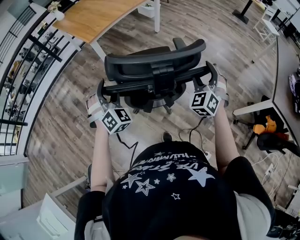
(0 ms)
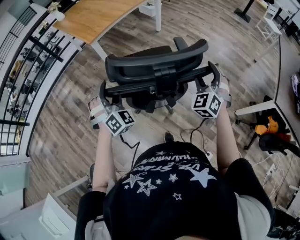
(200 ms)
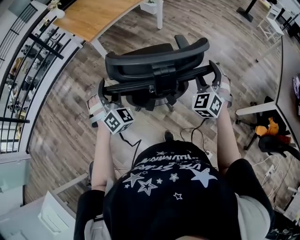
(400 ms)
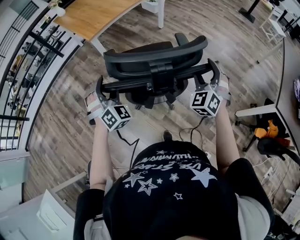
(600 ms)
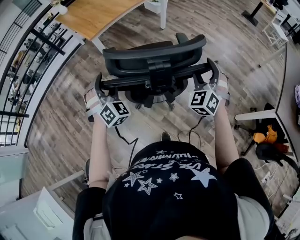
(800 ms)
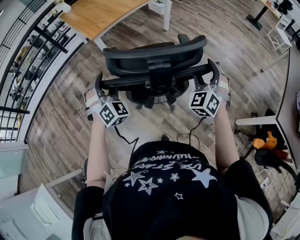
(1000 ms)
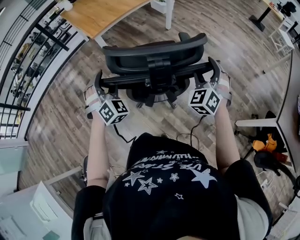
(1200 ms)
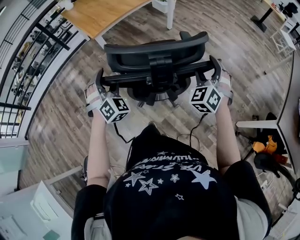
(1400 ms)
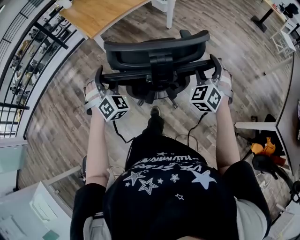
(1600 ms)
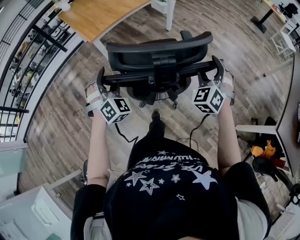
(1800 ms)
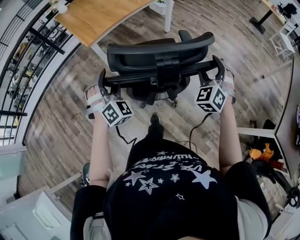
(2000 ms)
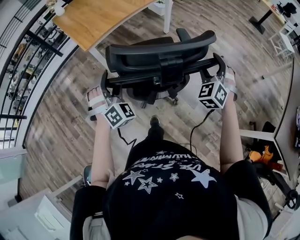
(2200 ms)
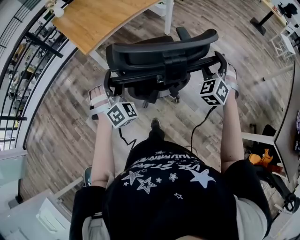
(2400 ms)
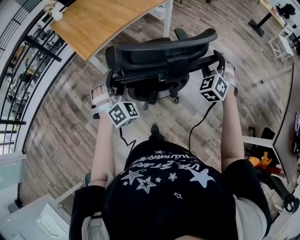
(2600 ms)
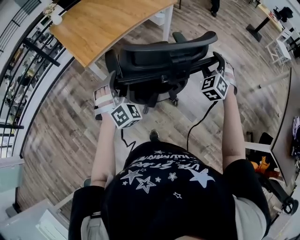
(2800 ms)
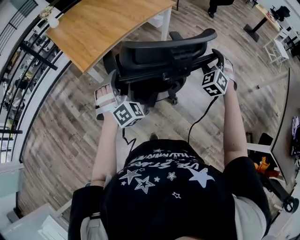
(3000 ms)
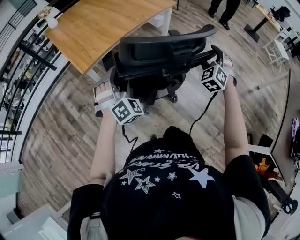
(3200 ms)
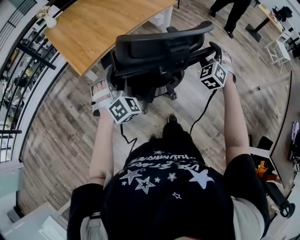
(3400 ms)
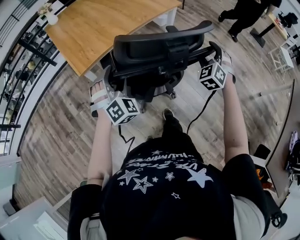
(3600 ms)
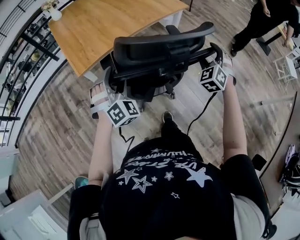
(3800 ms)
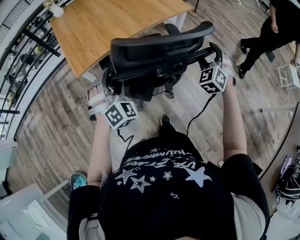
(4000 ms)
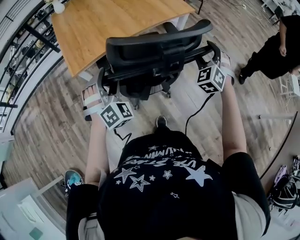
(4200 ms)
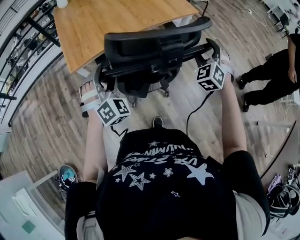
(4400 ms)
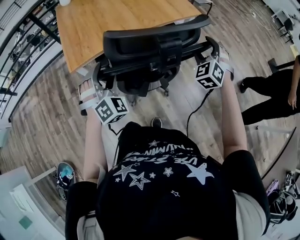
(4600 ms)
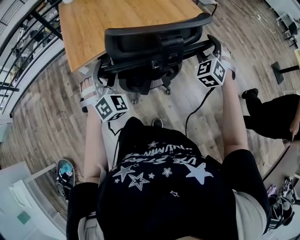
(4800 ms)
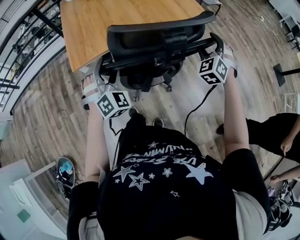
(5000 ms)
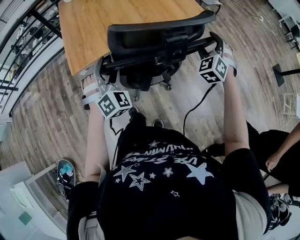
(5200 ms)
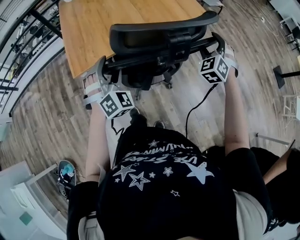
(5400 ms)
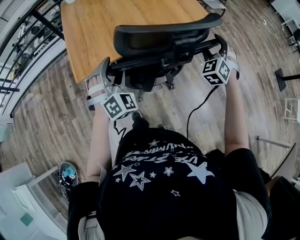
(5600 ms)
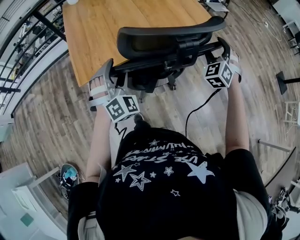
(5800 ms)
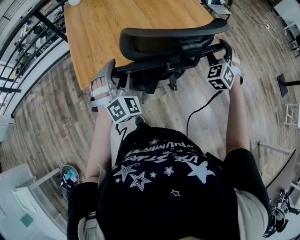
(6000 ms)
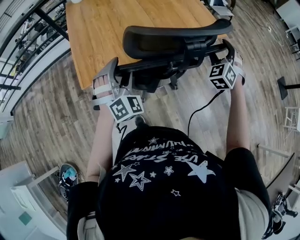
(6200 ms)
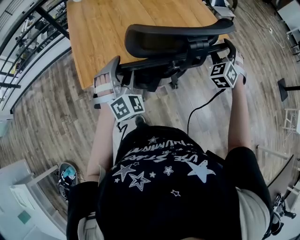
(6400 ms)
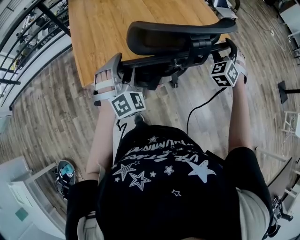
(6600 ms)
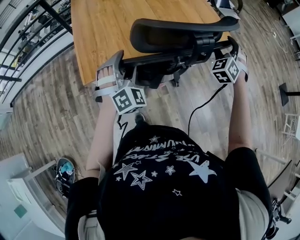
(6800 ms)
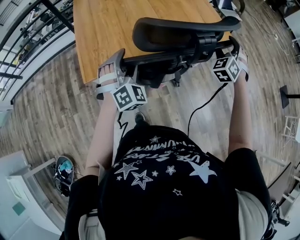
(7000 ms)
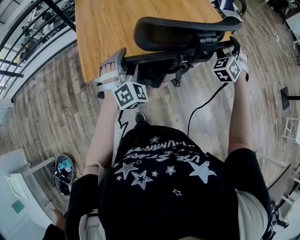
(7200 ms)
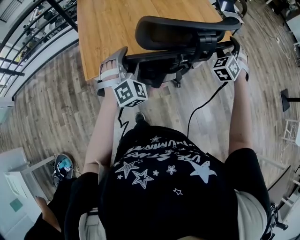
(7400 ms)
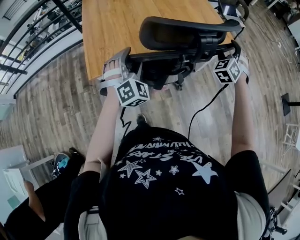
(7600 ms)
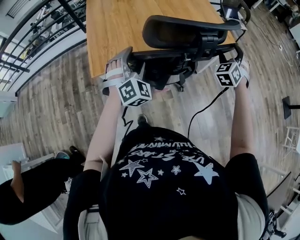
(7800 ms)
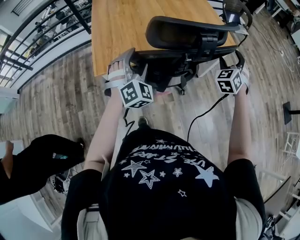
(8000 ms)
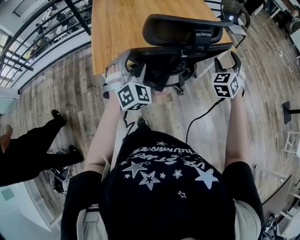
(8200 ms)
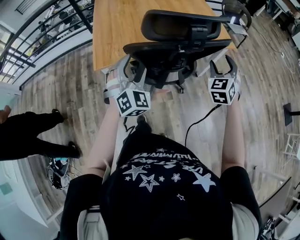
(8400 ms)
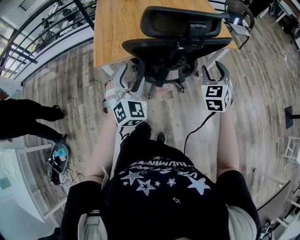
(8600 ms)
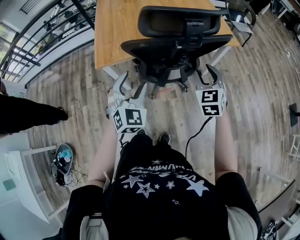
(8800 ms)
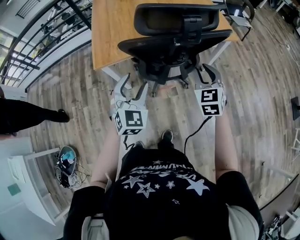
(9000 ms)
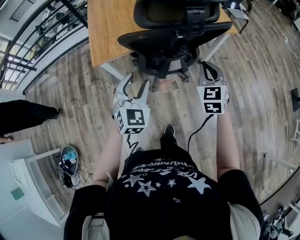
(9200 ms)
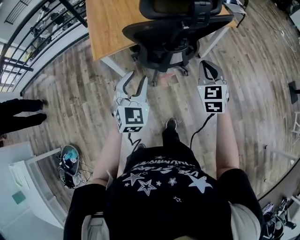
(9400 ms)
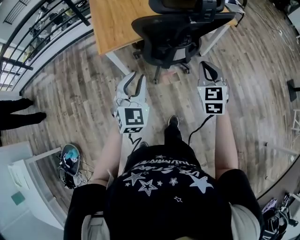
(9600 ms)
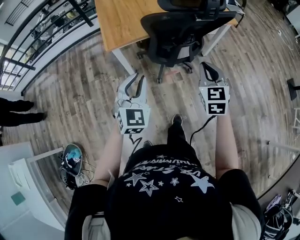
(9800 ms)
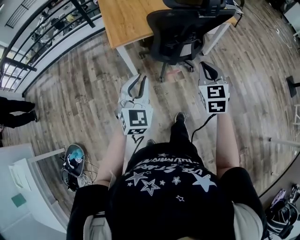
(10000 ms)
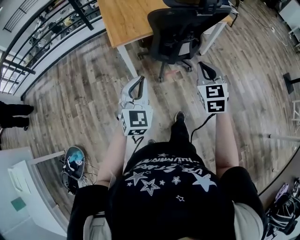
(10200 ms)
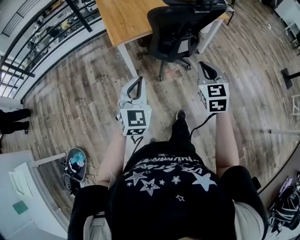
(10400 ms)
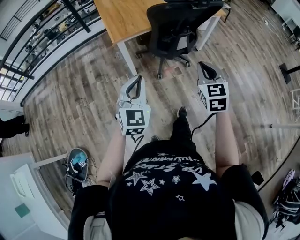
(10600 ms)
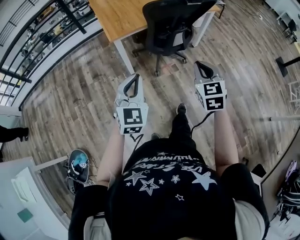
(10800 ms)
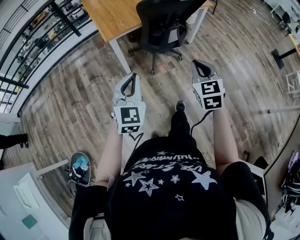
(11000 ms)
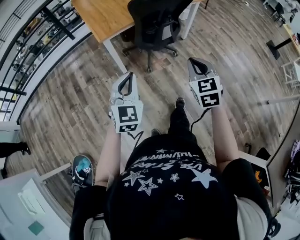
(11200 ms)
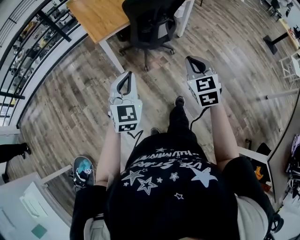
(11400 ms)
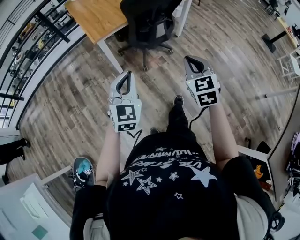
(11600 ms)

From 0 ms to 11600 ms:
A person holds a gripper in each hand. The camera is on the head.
From 0 ms to 1400 ms: Both grippers travel together forward, some 10 cm.
From 1400 ms to 2800 ms: Both grippers move forward, approximately 25 cm.
From 2800 ms to 4400 ms: The left gripper heads forward, covering approximately 20 cm; the right gripper heads forward, covering some 30 cm, and swivels roughly 20 degrees.
From 4400 ms to 5800 ms: The grippers both shift forward by approximately 20 cm.
From 5800 ms to 7200 ms: The right gripper changes place by some 5 cm.
From 7200 ms to 8800 ms: The right gripper travels backward and to the left by about 20 cm, and swivels roughly 40 degrees; the left gripper heads backward, covering roughly 15 cm, and changes its angle by approximately 30 degrees.
From 8800 ms to 10200 ms: The grippers both shift backward and to the left by approximately 25 cm. The left gripper closes its fingers. Meanwhile the right gripper closes.
From 10200 ms to 11600 ms: The right gripper is displaced backward by some 15 cm. The left gripper travels backward by some 10 cm.

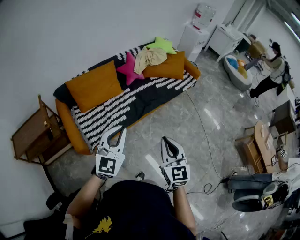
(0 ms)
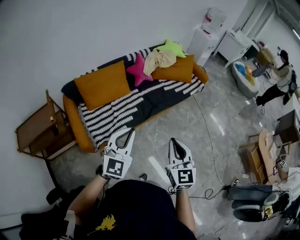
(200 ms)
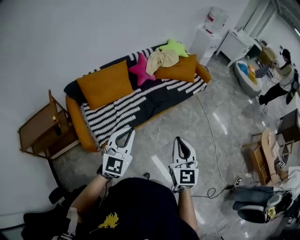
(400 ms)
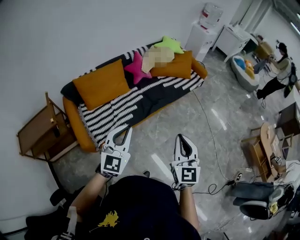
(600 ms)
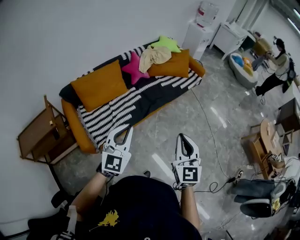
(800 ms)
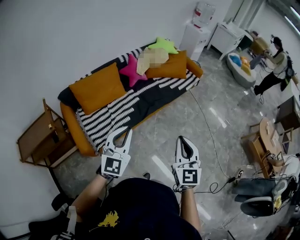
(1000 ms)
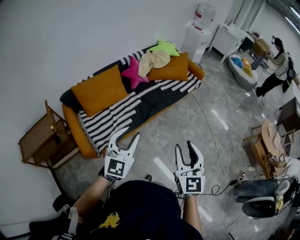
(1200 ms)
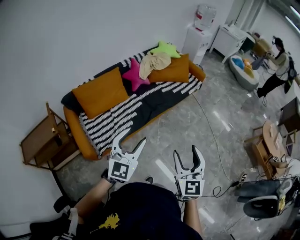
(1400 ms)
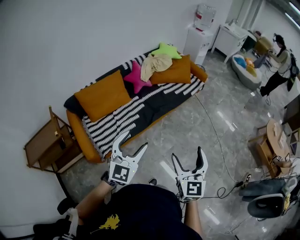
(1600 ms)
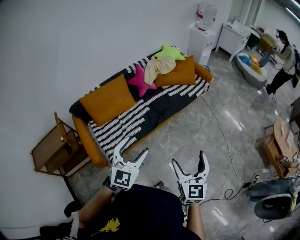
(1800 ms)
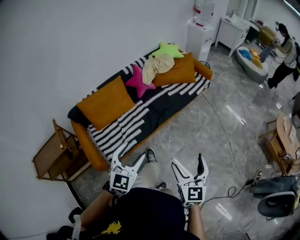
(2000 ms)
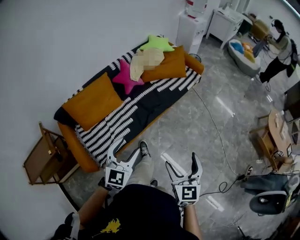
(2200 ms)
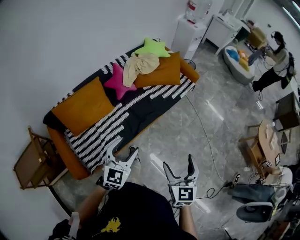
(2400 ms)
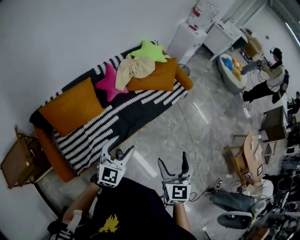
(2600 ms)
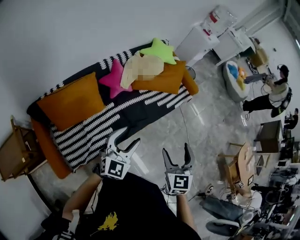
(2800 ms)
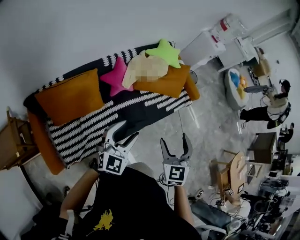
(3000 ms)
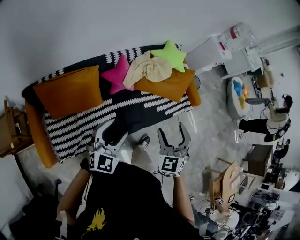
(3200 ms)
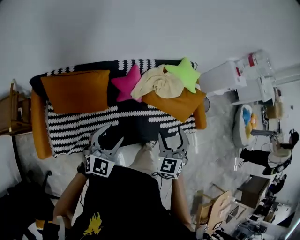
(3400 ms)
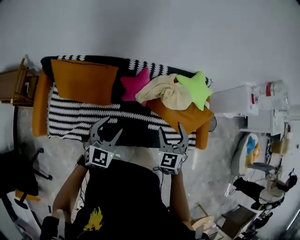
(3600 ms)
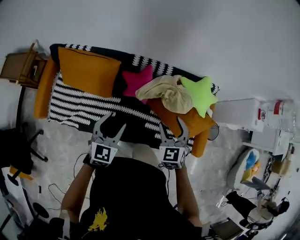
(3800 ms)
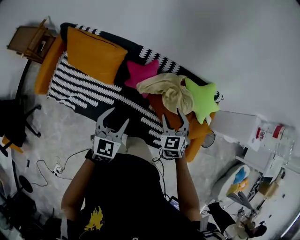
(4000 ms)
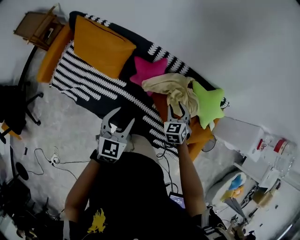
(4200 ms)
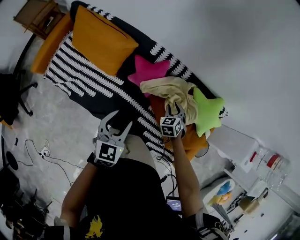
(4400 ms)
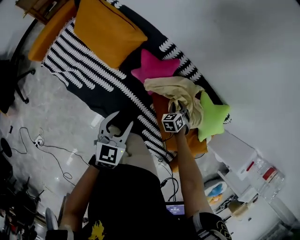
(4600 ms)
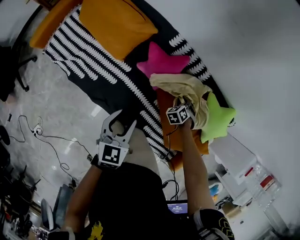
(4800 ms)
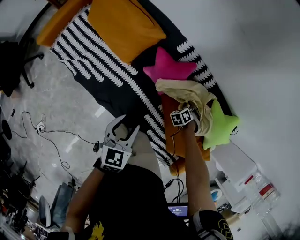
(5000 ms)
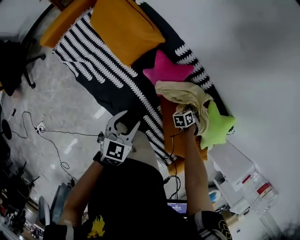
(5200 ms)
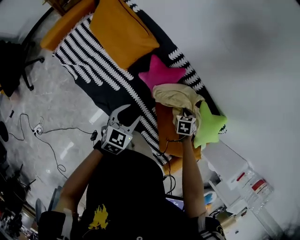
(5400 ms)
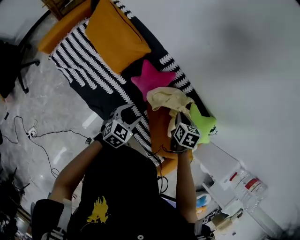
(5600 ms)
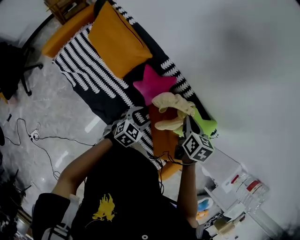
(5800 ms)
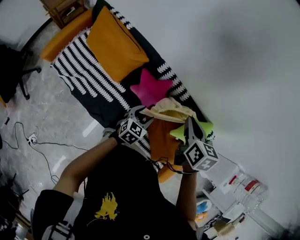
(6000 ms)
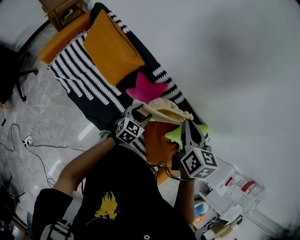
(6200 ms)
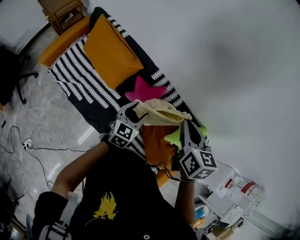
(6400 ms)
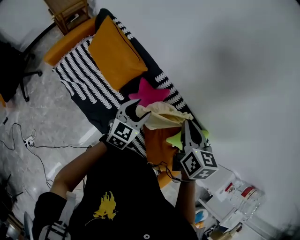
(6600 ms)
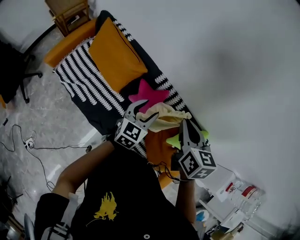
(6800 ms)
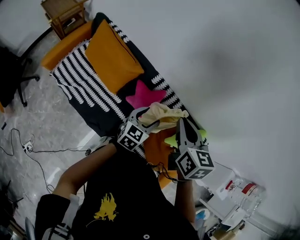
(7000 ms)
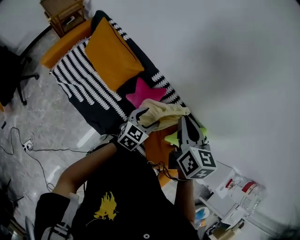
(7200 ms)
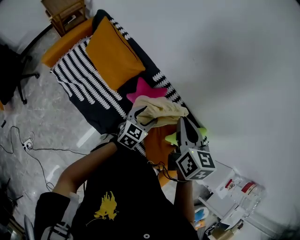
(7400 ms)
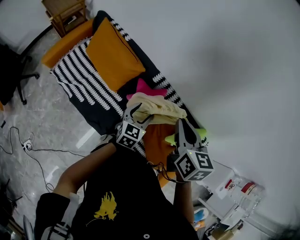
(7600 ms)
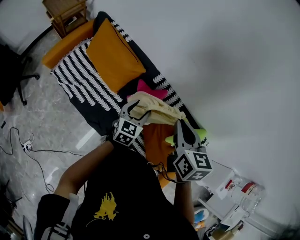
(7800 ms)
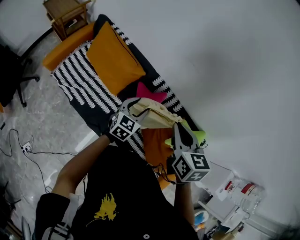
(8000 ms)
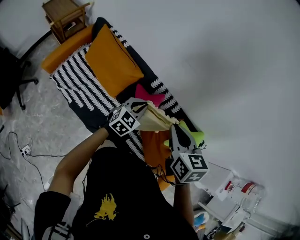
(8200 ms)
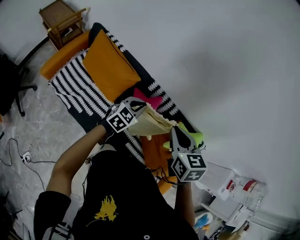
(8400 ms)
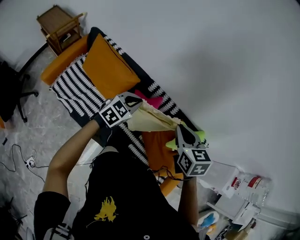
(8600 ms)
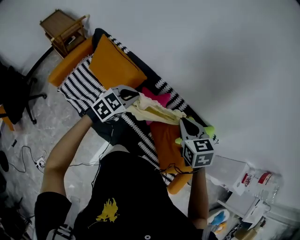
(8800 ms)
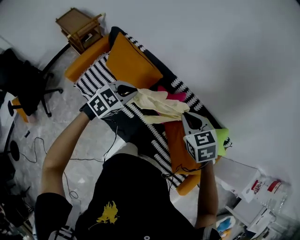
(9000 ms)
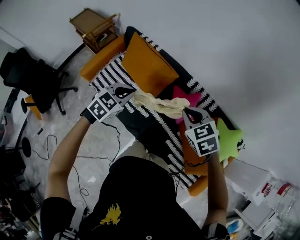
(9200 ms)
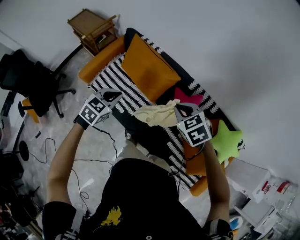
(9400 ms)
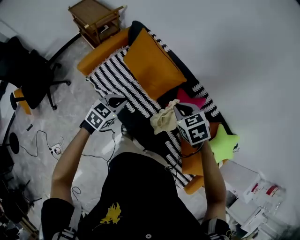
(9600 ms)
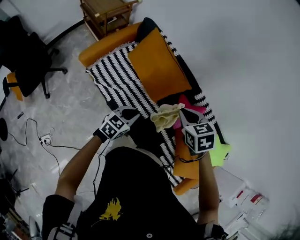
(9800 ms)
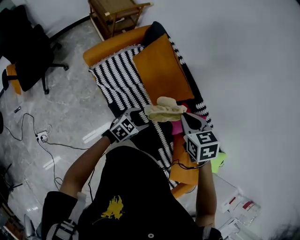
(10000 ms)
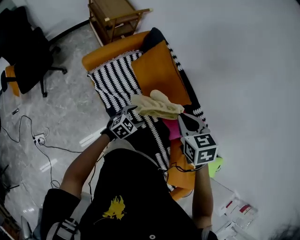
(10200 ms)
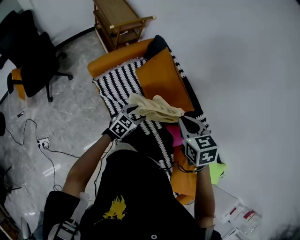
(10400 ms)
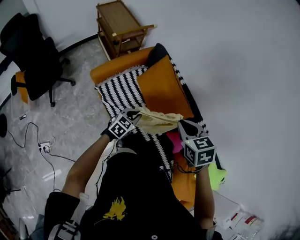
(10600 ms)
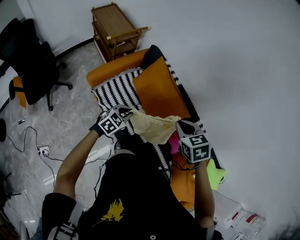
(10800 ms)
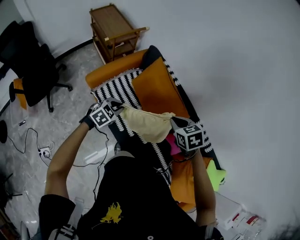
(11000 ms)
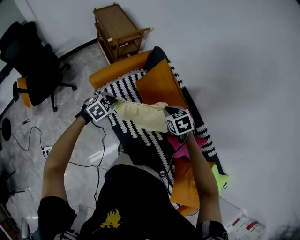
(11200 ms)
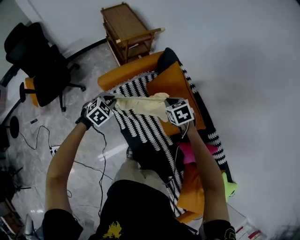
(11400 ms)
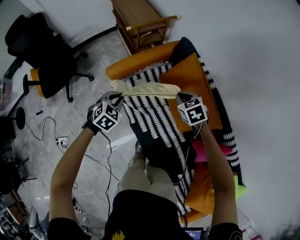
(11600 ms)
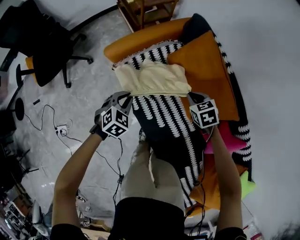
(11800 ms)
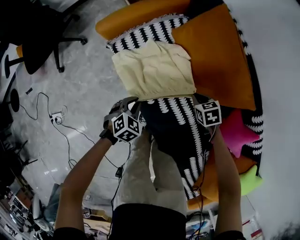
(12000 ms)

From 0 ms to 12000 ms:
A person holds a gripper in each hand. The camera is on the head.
From 0 ms to 1600 ms: The grippers both shift to the right by some 10 cm. The left gripper opens up. The right gripper opens up.
From 1600 ms to 3000 ms: The pair of grippers is taken forward, roughly 50 cm. The right gripper changes its angle by roughly 30 degrees.
From 3000 ms to 4400 ms: The right gripper moves about 70 cm, points its fingers some 30 degrees further downward, and closes up; the left gripper moves some 35 cm, and swivels about 70 degrees.
From 4400 ms to 6000 ms: The right gripper moves upward, approximately 30 cm, and rotates approximately 40 degrees; the left gripper travels forward, downward and to the right by roughly 15 cm.
From 6000 ms to 7600 ms: The left gripper shifts some 10 cm upward, while the right gripper goes approximately 10 cm upward and to the left.
From 7600 ms to 9000 ms: The right gripper shifts by some 5 cm, and swivels some 30 degrees; the left gripper moves to the left and upward, about 15 cm, rotates approximately 30 degrees, and closes its fingers.
From 9000 ms to 10400 ms: The left gripper is displaced to the left and downward by approximately 35 cm, rotates roughly 30 degrees, and opens up. The right gripper is displaced to the left by some 40 cm.
From 10400 ms to 12000 ms: The right gripper travels downward by approximately 60 cm, and rotates roughly 20 degrees, while the left gripper is displaced downward by about 35 cm, rotates roughly 30 degrees, and closes its fingers.
